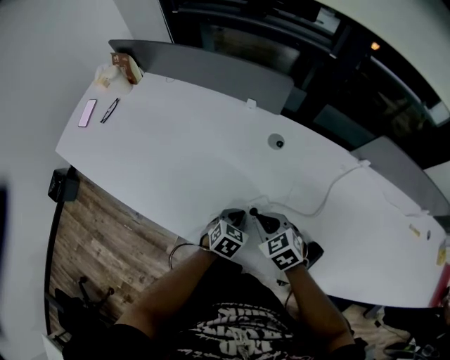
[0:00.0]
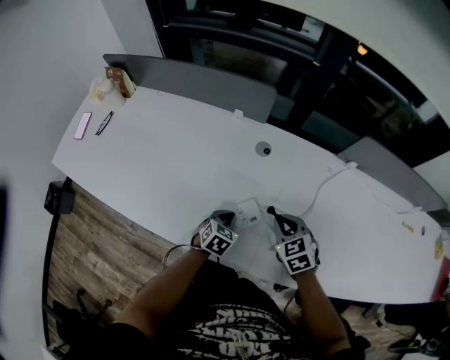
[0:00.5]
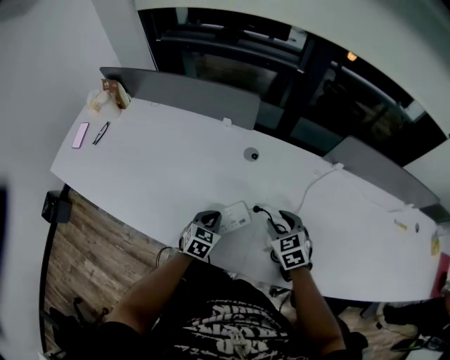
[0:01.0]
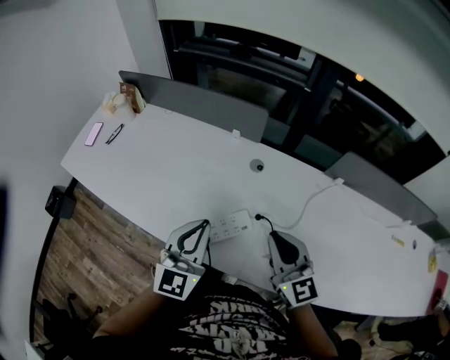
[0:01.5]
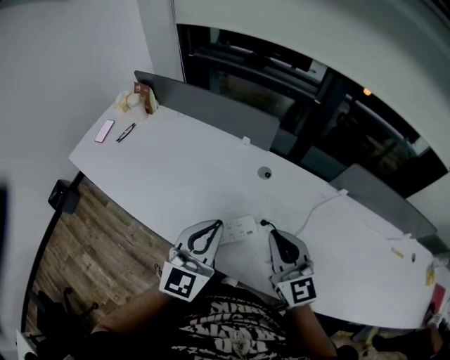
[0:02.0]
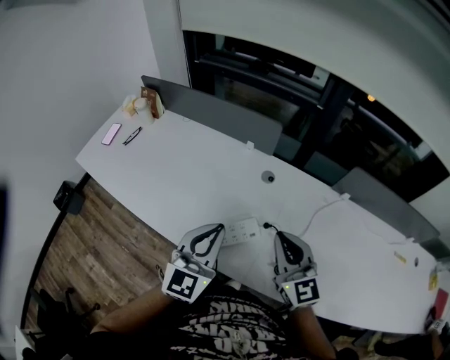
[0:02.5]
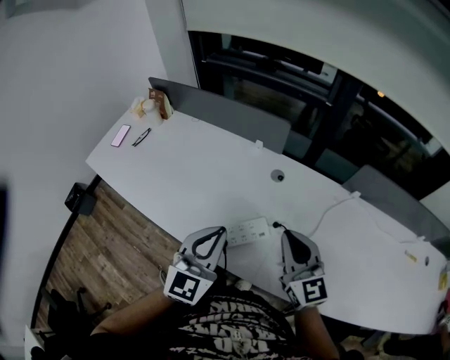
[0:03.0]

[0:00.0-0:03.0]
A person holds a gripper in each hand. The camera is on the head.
0:00.0 to 0:01.5: The grippers both shift upward by approximately 25 cm. The right gripper tips its fingers upward by approximately 50 degrees, and opens, then closes once more, while the left gripper tips its fingers upward by roughly 50 degrees.
0:01.5 to 0:03.0: There are only small adjustments of the grippers.

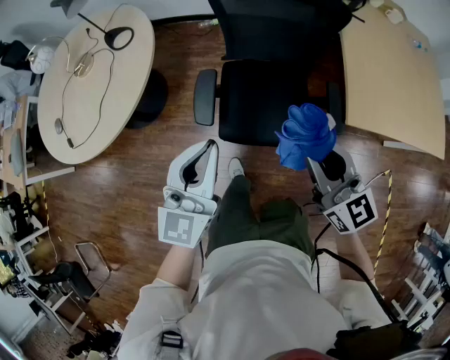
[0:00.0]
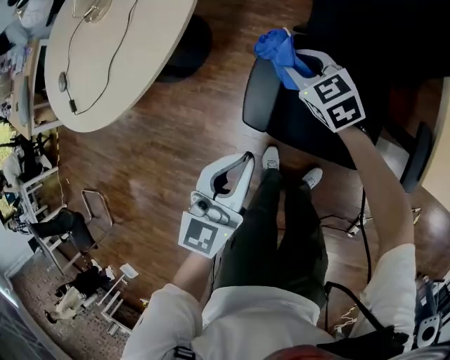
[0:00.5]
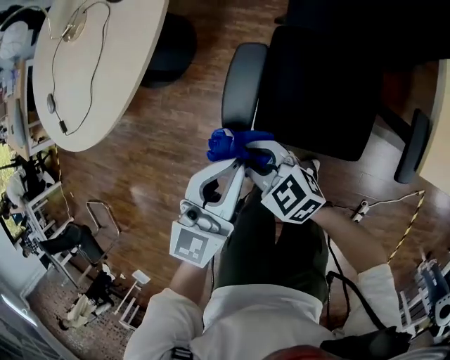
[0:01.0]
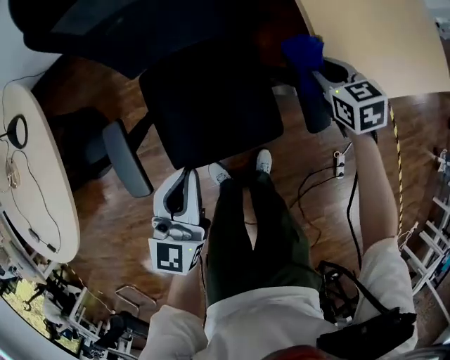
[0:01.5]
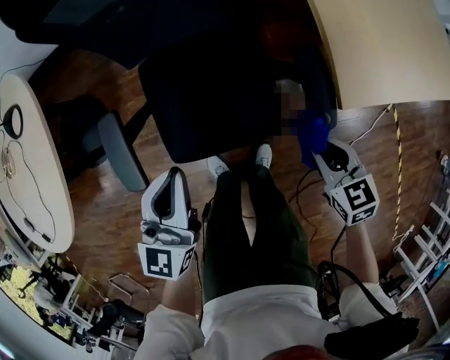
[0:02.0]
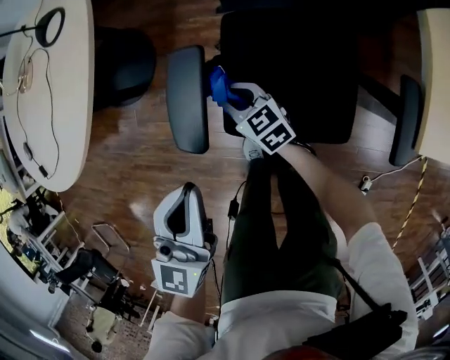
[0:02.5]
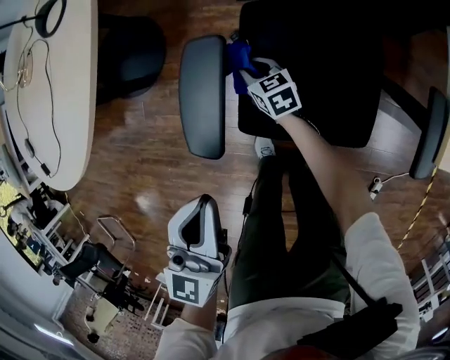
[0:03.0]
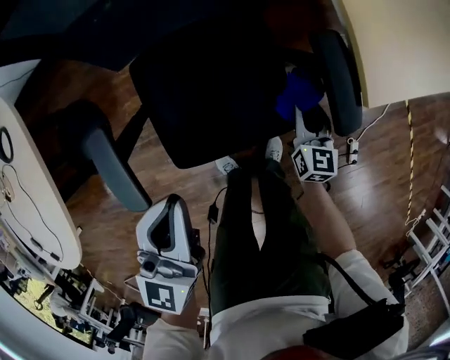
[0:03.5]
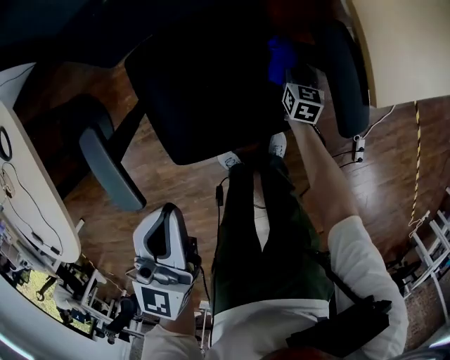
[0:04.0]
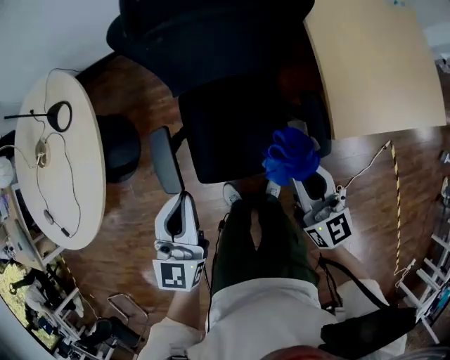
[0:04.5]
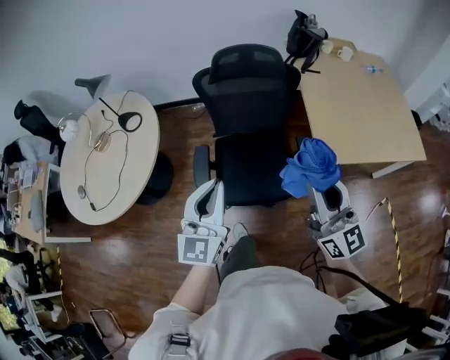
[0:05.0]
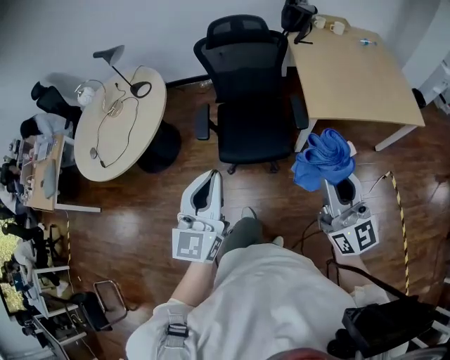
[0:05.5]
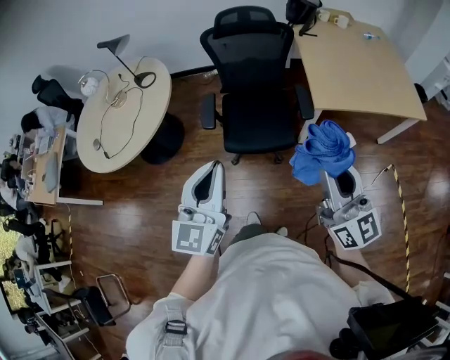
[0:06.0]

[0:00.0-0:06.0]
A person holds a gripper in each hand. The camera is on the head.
0:00.0 to 0:02.0: The two grippers go about 25 cm downward. The right gripper points its fingers about 40 degrees further downward.
0:02.0 to 0:04.0: The right gripper moves up and down over some 30 cm, changing direction 2 times, and rotates approximately 40 degrees.
0:04.0 to 0:06.0: The right gripper shifts some 90 cm upward and backward, and tips its fingers upward by roughly 50 degrees, while the left gripper goes roughly 50 cm upward and backward, and turns by some 30 degrees.

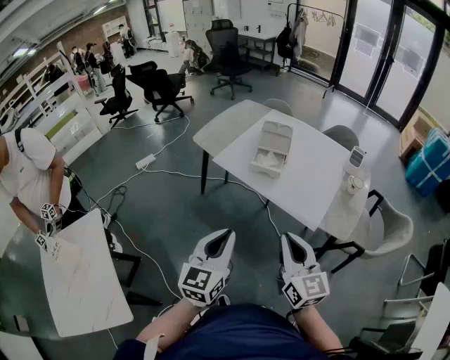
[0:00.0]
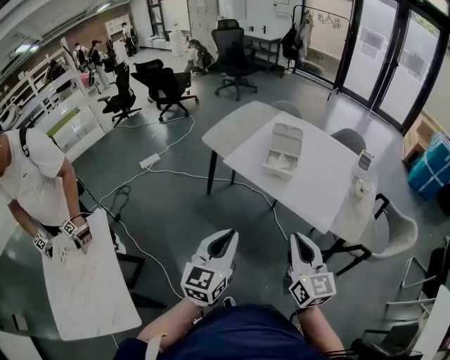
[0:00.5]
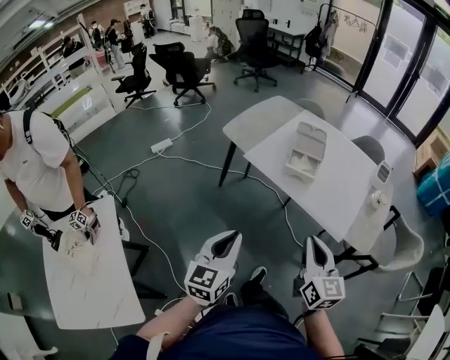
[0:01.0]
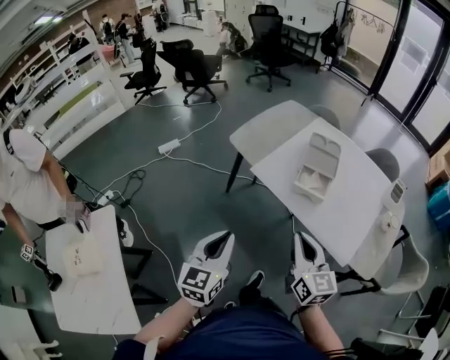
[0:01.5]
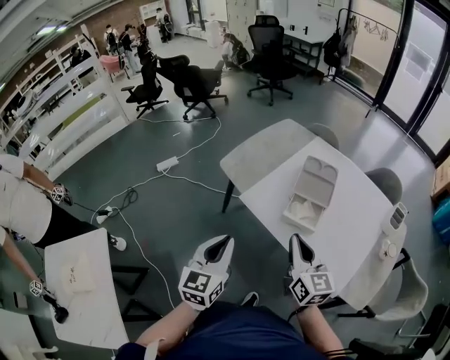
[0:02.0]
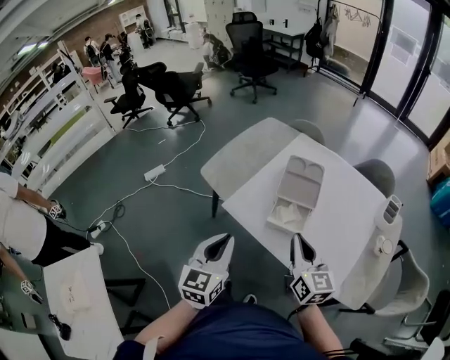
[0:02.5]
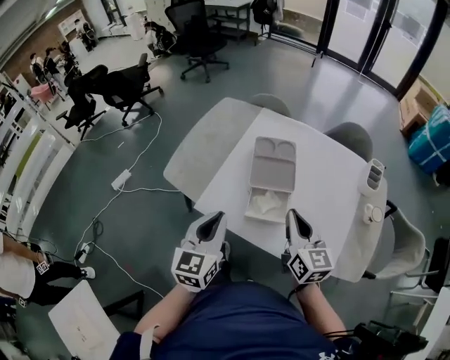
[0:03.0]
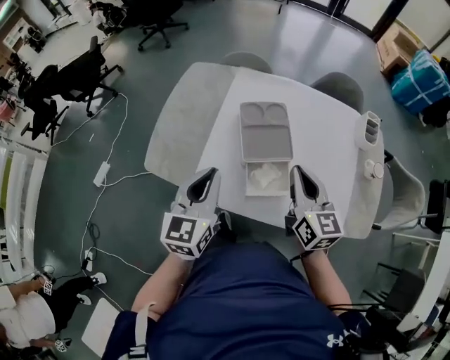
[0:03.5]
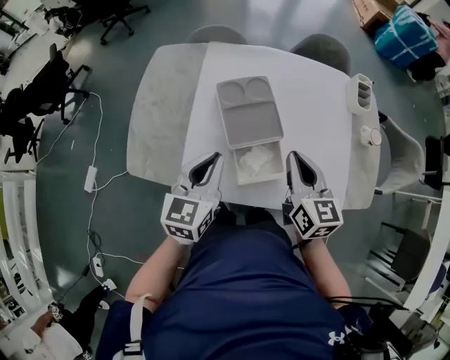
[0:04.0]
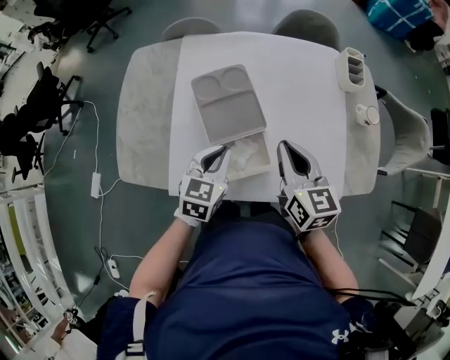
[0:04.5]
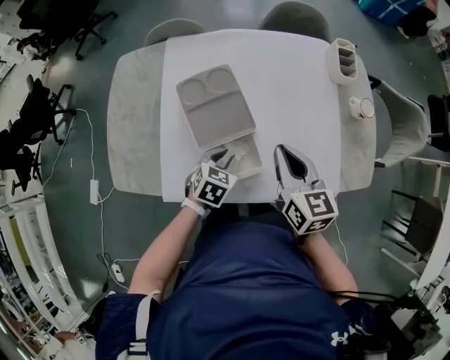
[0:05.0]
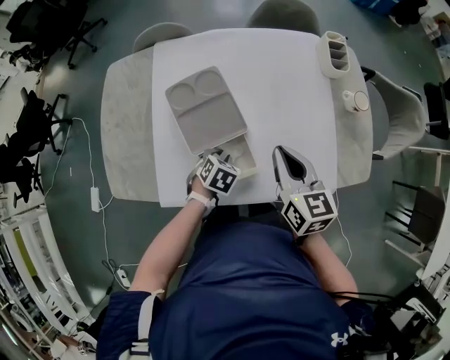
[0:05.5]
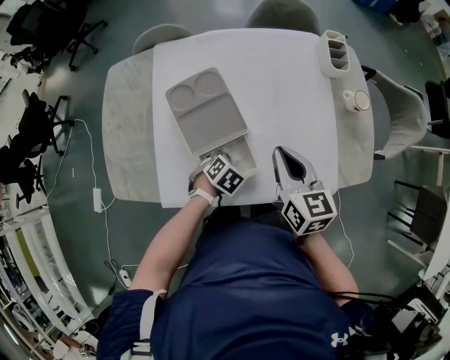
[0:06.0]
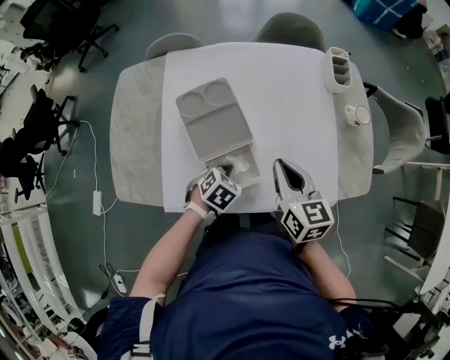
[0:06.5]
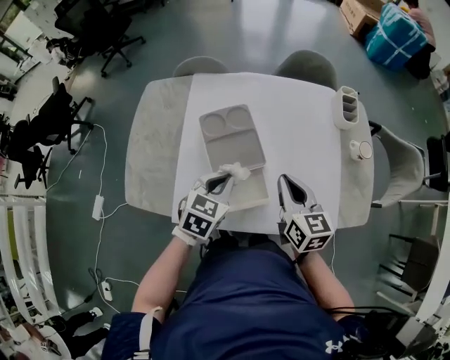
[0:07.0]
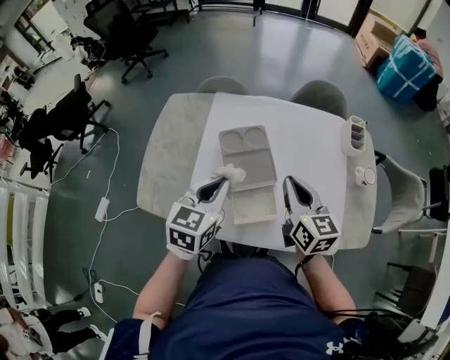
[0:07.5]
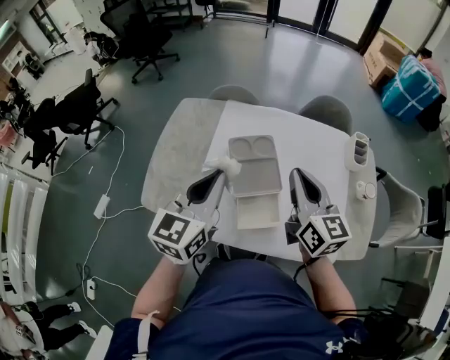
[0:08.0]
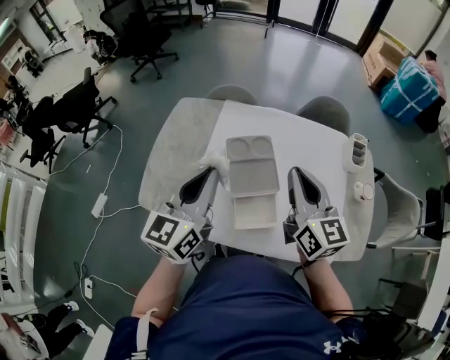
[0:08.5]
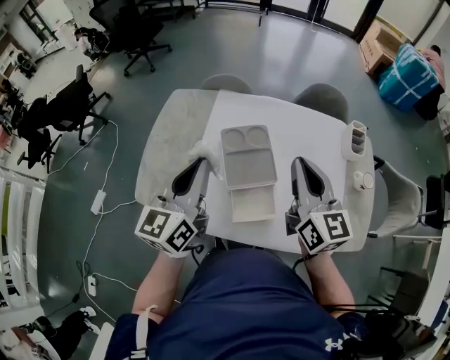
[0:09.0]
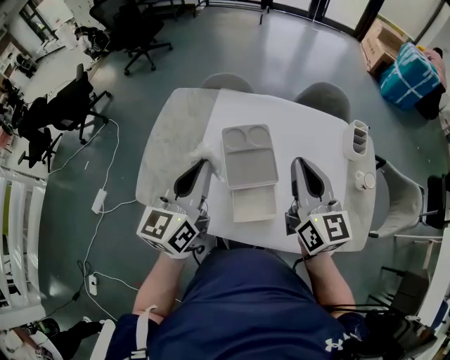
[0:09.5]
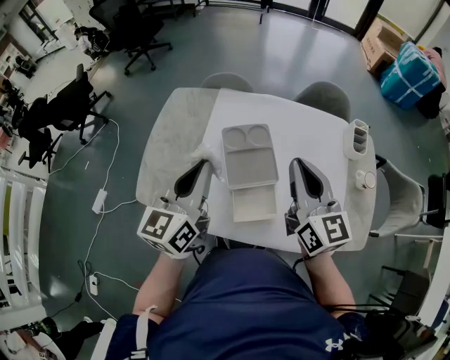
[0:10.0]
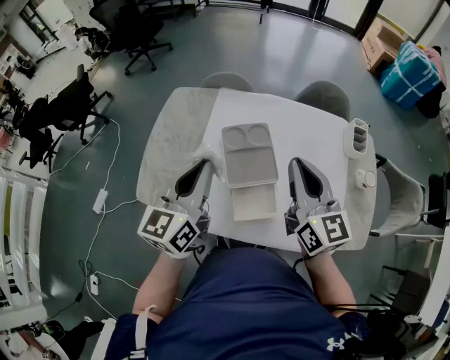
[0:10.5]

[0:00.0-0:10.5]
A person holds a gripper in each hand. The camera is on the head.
0:00.0 to 0:02.0: The grippers both shift forward by some 30 cm.
0:02.0 to 0:04.0: The right gripper changes place by some 25 cm, and swivels some 40 degrees. The left gripper moves some 35 cm, and turns by approximately 40 degrees.
0:04.0 to 0:06.5: The left gripper moves downward, about 20 cm, and angles its fingers downward, by roughly 50 degrees, while the right gripper ends up about 10 cm from where it was.
0:06.5 to 0:08.5: The left gripper travels upward and to the left by some 40 cm, and points its fingers some 60 degrees further upward; the right gripper moves upward and to the left, roughly 20 cm, and changes its angle by about 20 degrees.
0:08.5 to 0:10.5: The grippers stay close to where they were, moving slightly.

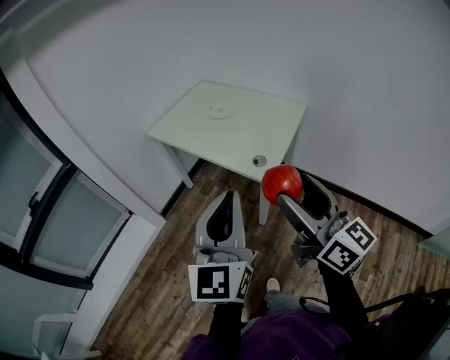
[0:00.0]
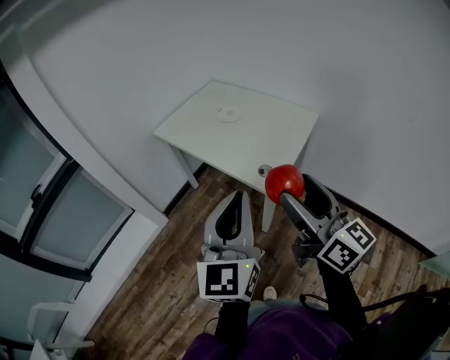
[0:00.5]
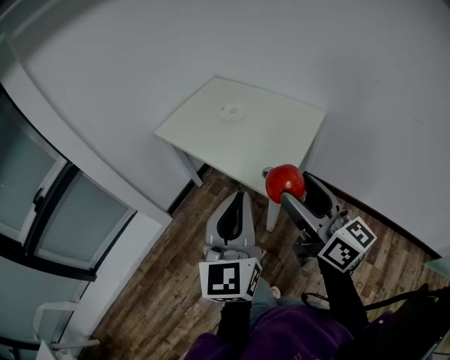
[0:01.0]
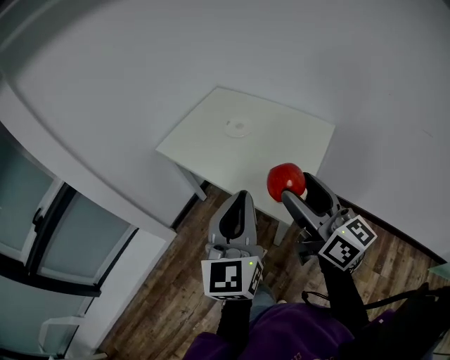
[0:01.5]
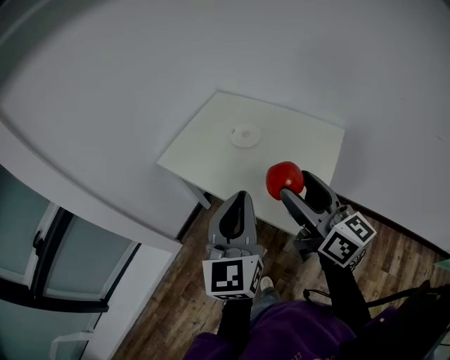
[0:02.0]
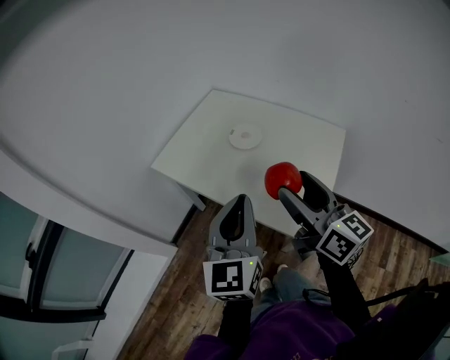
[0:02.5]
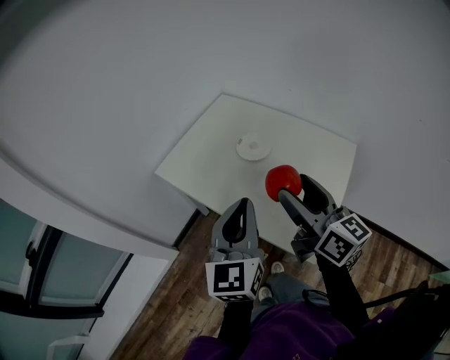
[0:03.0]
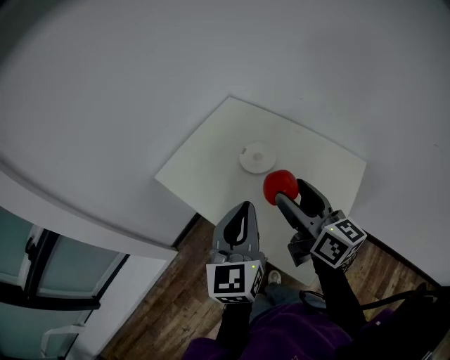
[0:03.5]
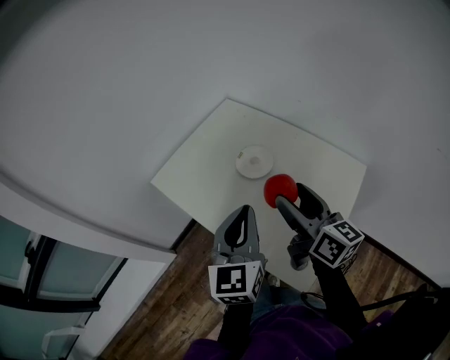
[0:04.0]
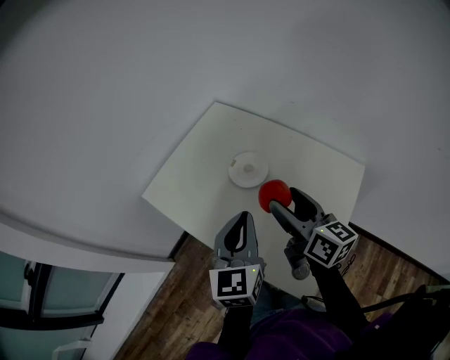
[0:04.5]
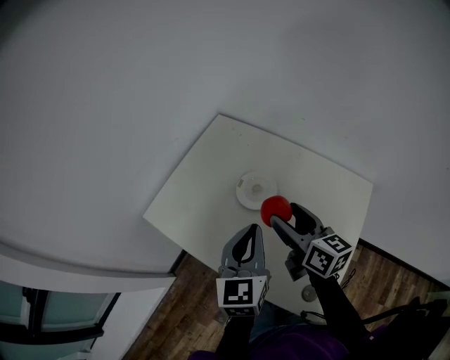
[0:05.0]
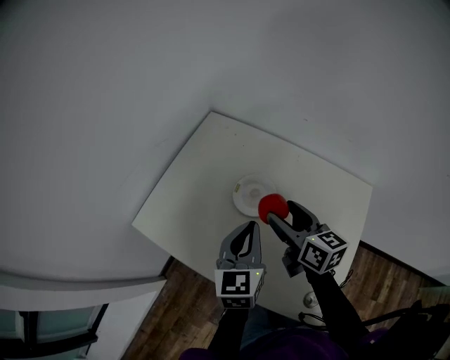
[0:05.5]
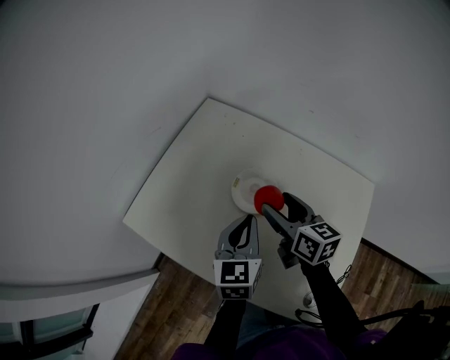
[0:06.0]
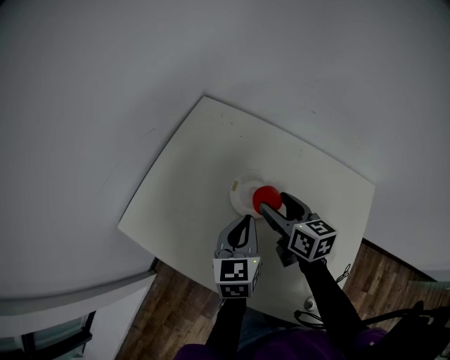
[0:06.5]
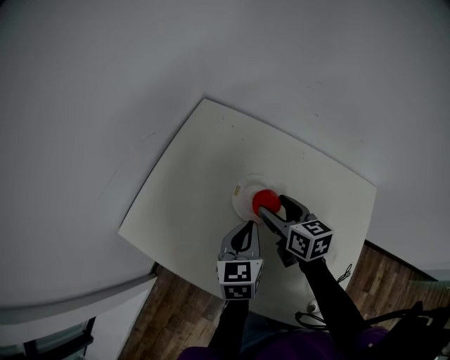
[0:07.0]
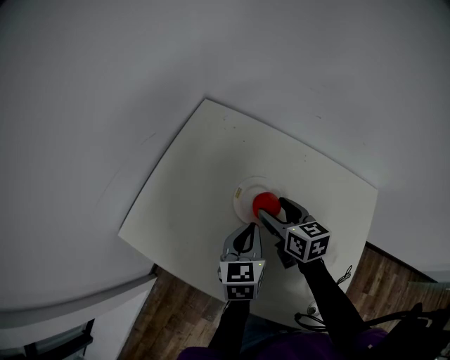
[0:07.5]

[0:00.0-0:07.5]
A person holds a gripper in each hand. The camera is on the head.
0:00.0 to 0:02.0: The grippers both shift forward by roughly 30 cm.
0:02.0 to 0:04.0: The right gripper goes about 20 cm forward, while the left gripper is displaced forward and downward by roughly 20 cm.
0:04.0 to 0:05.5: The two grippers go about 20 cm forward and downward.
0:05.5 to 0:07.5: Both grippers move downward and forward, about 15 cm.
